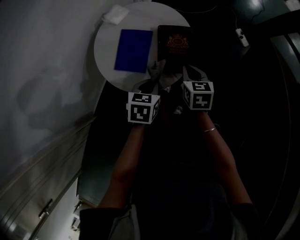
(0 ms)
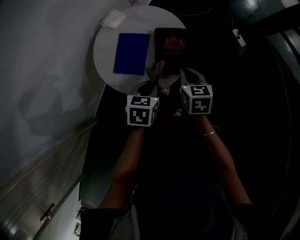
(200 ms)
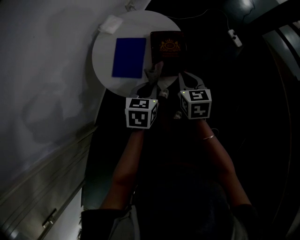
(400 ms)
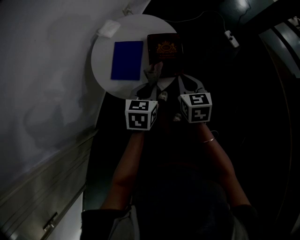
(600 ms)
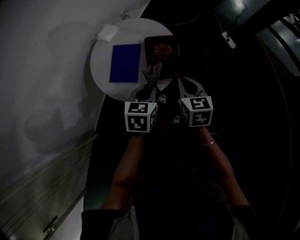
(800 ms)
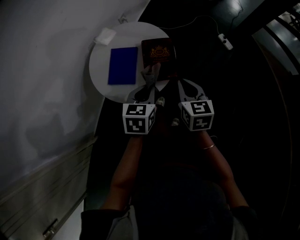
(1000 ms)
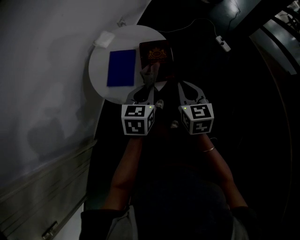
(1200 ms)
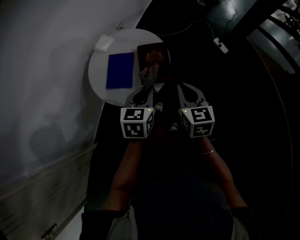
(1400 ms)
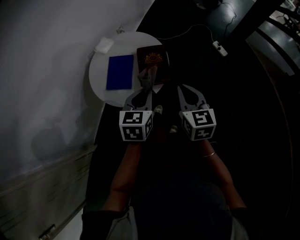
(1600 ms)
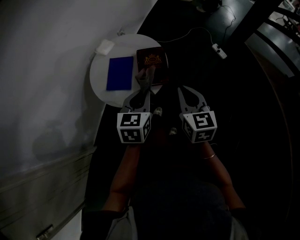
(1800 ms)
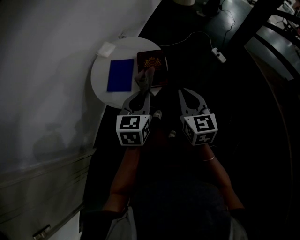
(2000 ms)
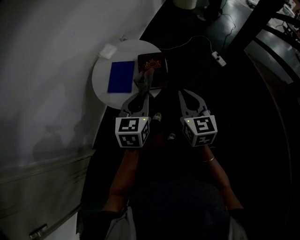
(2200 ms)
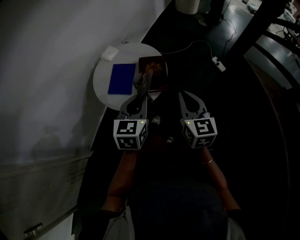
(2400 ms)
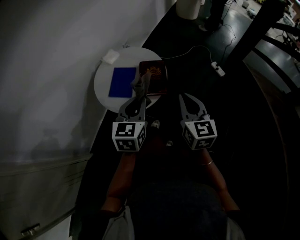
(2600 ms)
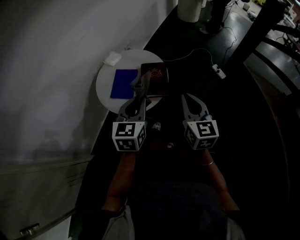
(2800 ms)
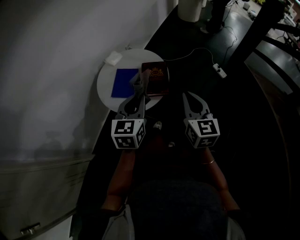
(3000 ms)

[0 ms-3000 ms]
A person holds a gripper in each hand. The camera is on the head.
0 ms to 1600 ms: The right gripper is displaced upward, backward and to the right by approximately 20 cm; the left gripper shifts some 15 cm upward and to the right, and turns by roughly 20 degrees.
1600 ms to 3000 ms: The two grippers go about 10 cm upward.

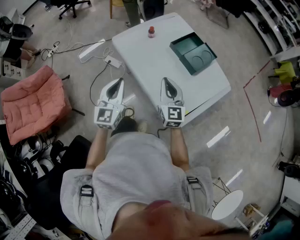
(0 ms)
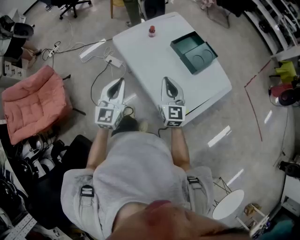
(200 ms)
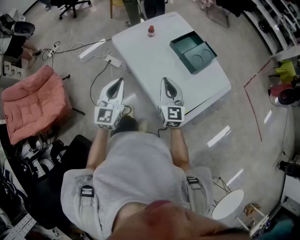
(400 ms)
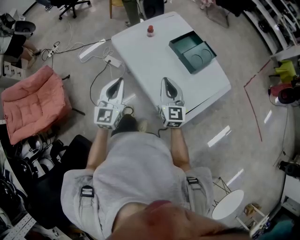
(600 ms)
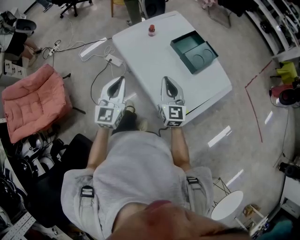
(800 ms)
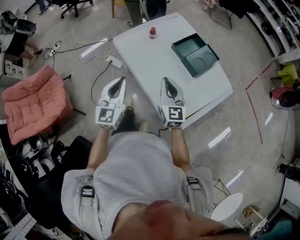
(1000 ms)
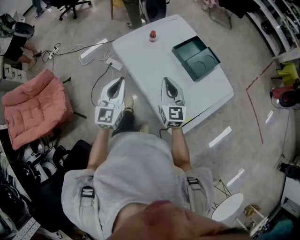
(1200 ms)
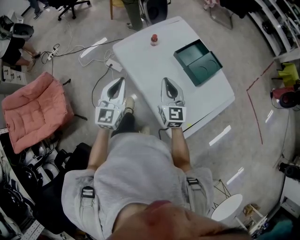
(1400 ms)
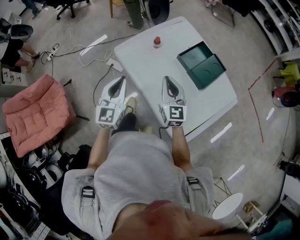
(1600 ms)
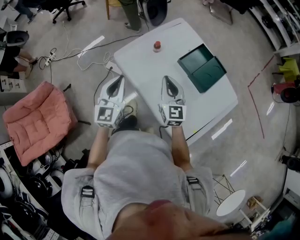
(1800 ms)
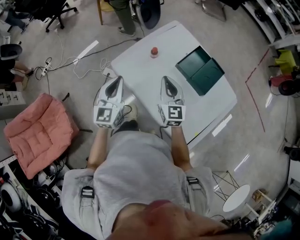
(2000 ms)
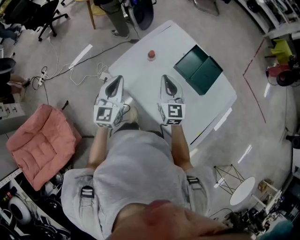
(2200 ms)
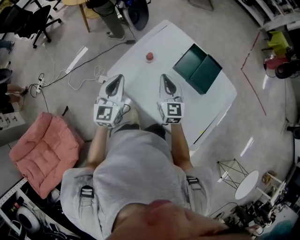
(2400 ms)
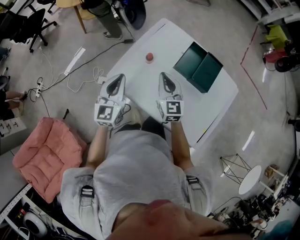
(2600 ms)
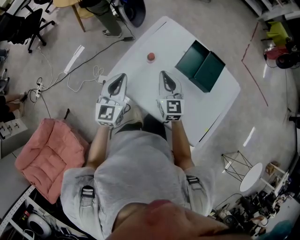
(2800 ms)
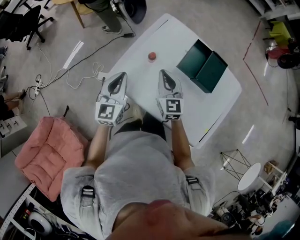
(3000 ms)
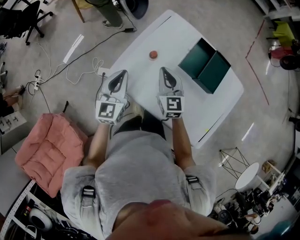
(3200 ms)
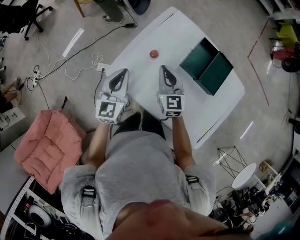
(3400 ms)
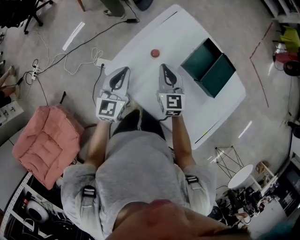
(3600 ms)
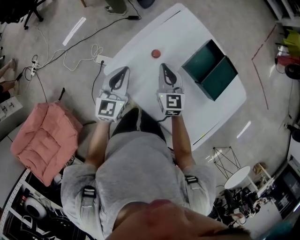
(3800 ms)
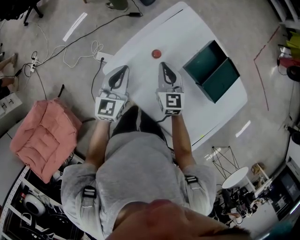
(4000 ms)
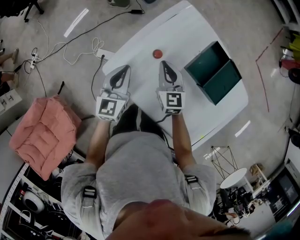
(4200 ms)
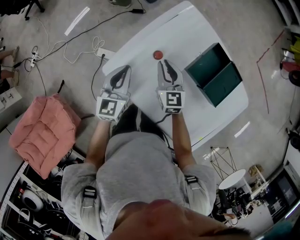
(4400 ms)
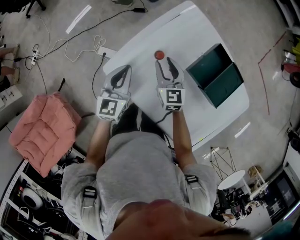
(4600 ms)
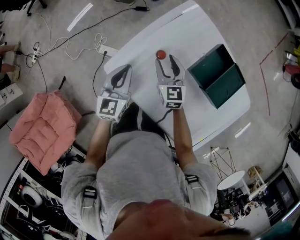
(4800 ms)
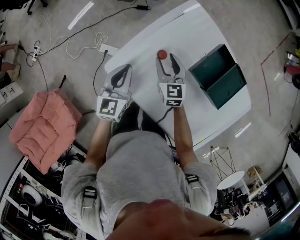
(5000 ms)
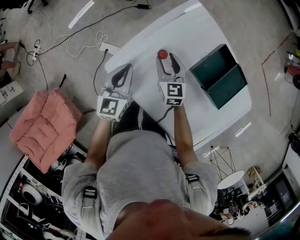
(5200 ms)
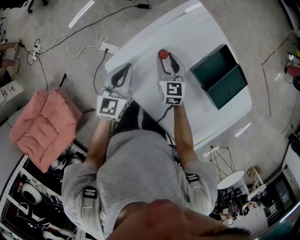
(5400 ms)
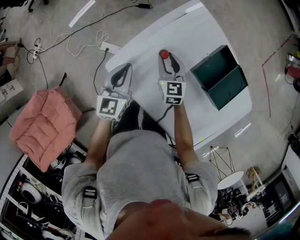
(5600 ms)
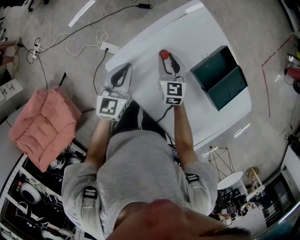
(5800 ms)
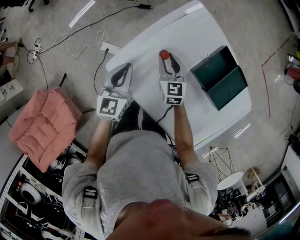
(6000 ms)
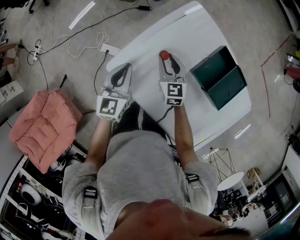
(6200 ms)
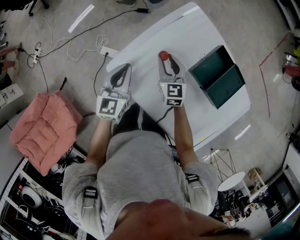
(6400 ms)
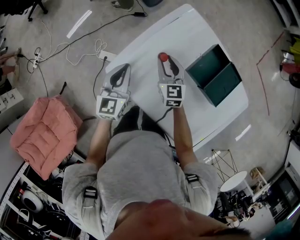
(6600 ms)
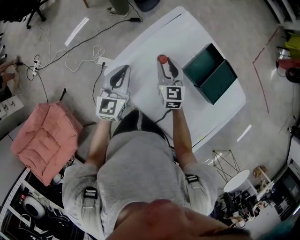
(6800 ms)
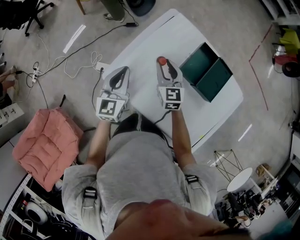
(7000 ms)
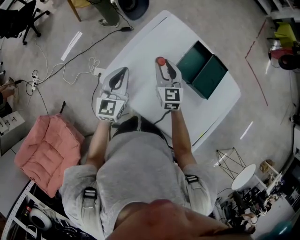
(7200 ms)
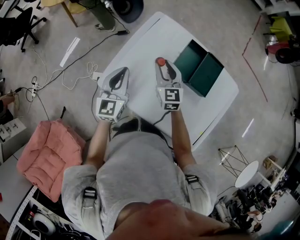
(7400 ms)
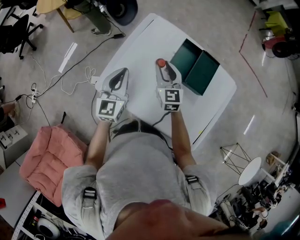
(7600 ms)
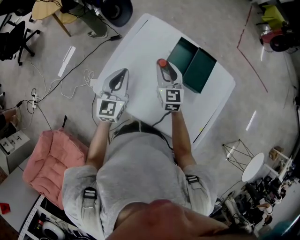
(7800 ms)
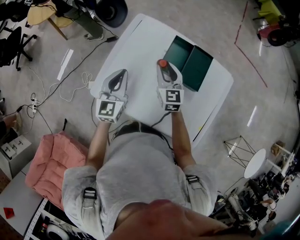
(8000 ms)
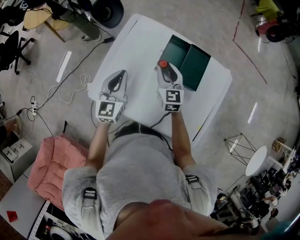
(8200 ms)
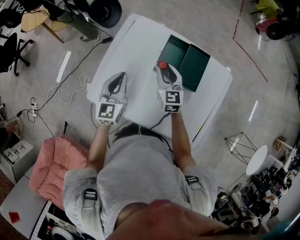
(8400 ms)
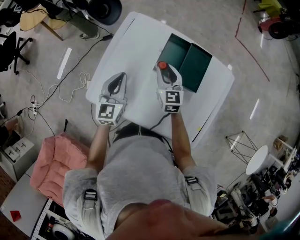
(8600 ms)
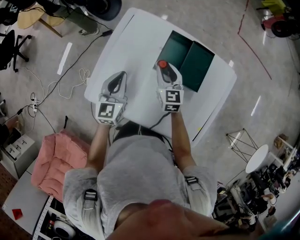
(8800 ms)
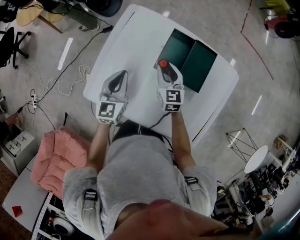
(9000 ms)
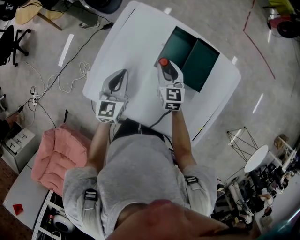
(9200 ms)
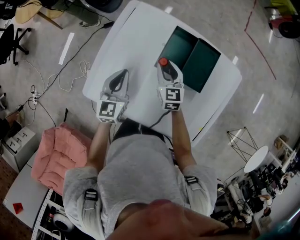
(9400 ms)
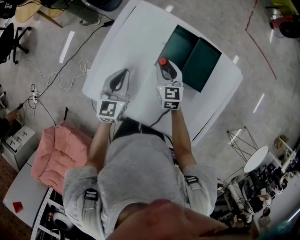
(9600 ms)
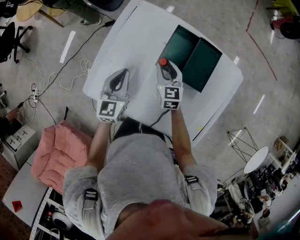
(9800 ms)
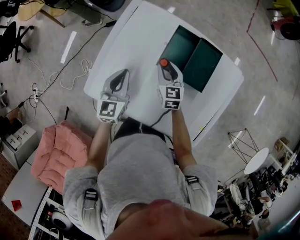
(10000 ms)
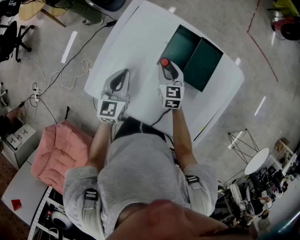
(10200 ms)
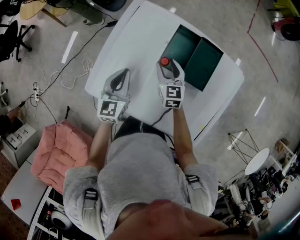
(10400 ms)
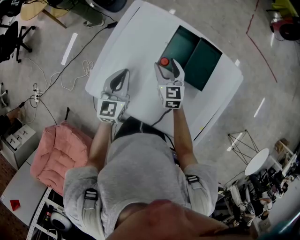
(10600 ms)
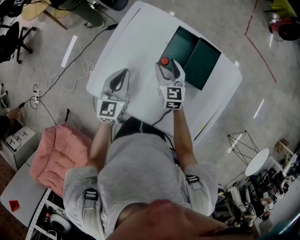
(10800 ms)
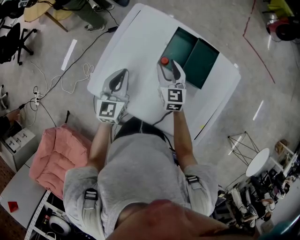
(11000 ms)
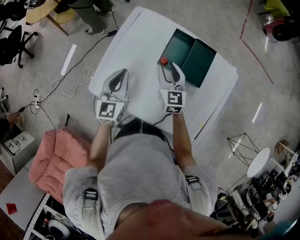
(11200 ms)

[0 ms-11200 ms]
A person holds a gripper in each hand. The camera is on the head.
0 ms to 1600 ms: Both grippers move forward, roughly 15 cm.
1600 ms to 3200 ms: Both grippers move forward, approximately 20 cm.
3200 ms to 4800 ms: The grippers both shift downward and forward by approximately 10 cm. The right gripper opens.
4800 ms to 6400 ms: The grippers move only a little.
6400 ms to 8000 ms: The two grippers go approximately 15 cm to the right and upward. The right gripper rotates about 20 degrees.
8000 ms to 9600 ms: Both grippers travel together downward, some 10 cm.
9600 ms to 11200 ms: The grippers both shift upward by roughly 10 cm. The right gripper opens, then closes again.

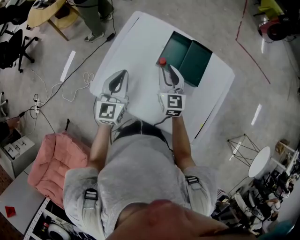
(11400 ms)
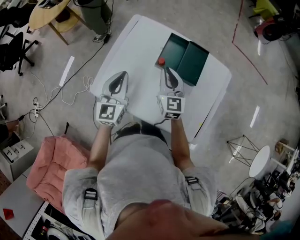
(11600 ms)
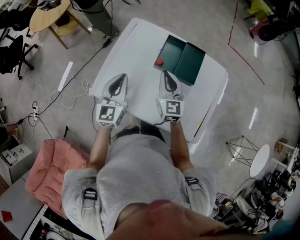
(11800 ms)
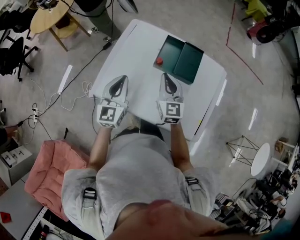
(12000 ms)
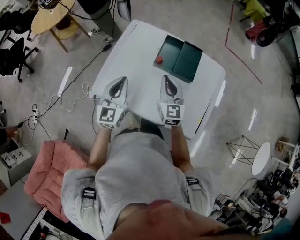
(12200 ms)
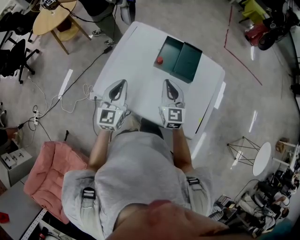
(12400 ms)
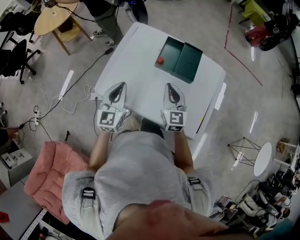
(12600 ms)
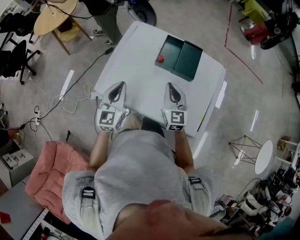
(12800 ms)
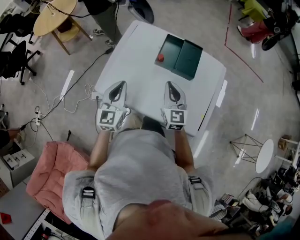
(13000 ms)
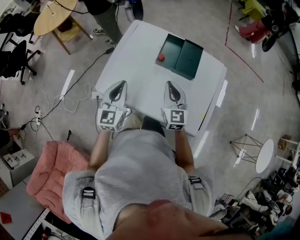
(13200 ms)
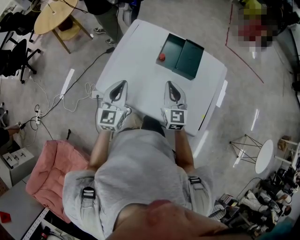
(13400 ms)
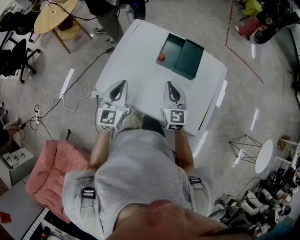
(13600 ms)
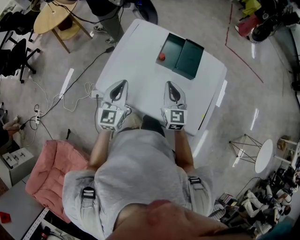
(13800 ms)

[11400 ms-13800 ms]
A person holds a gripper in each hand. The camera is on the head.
11400 ms to 12600 ms: Both grippers travel together backward, approximately 10 cm. The right gripper closes up.
12600 ms to 13800 ms: Both grippers stay put.

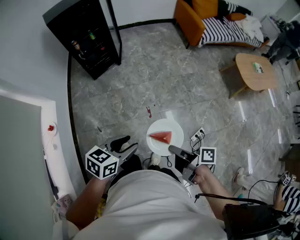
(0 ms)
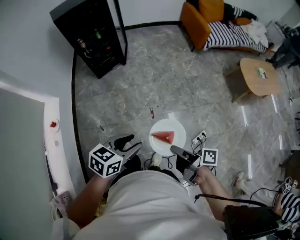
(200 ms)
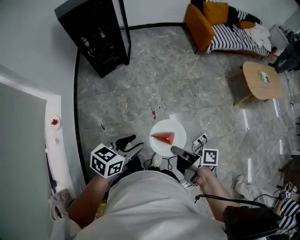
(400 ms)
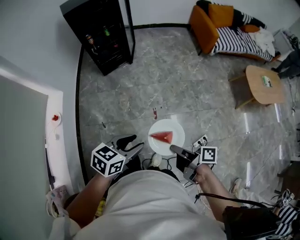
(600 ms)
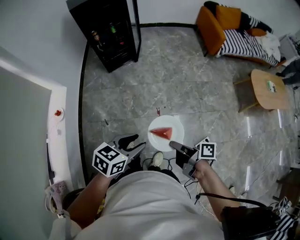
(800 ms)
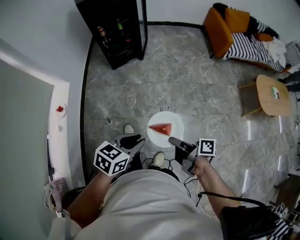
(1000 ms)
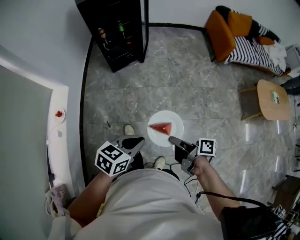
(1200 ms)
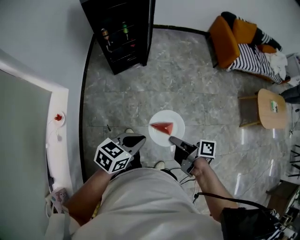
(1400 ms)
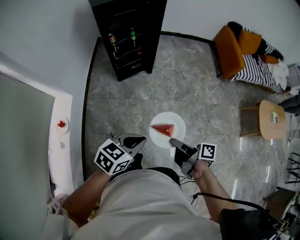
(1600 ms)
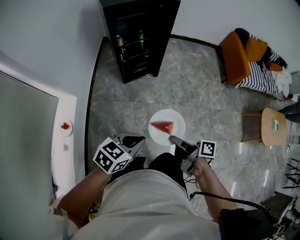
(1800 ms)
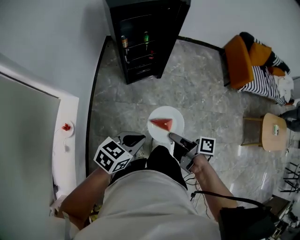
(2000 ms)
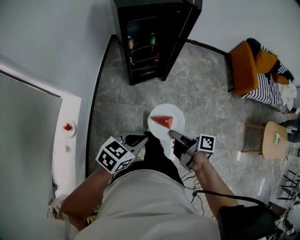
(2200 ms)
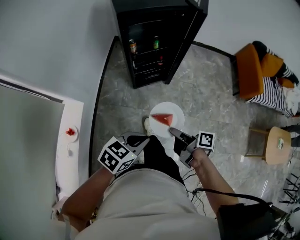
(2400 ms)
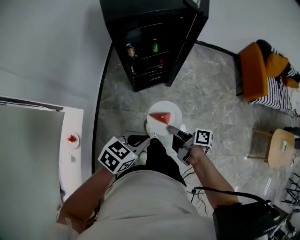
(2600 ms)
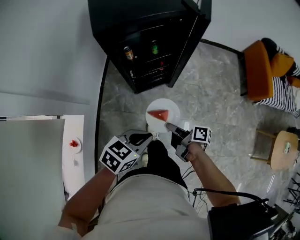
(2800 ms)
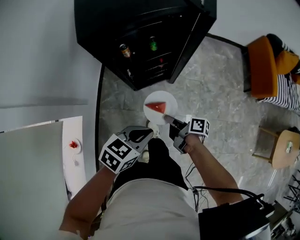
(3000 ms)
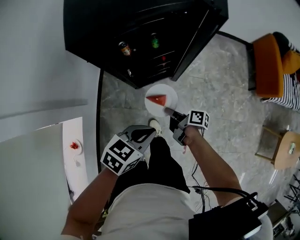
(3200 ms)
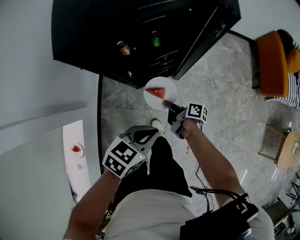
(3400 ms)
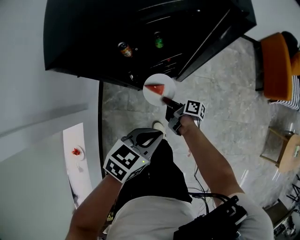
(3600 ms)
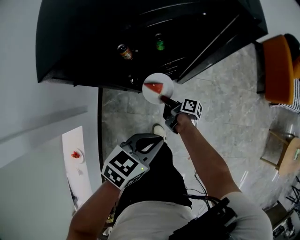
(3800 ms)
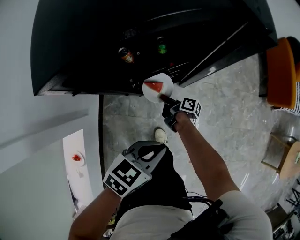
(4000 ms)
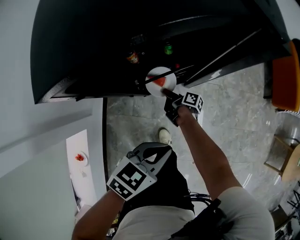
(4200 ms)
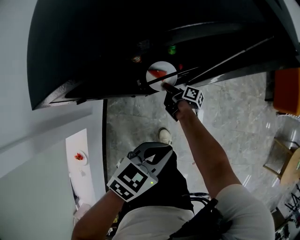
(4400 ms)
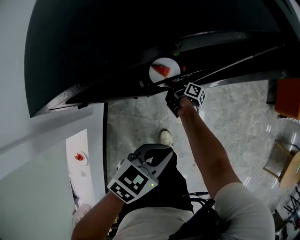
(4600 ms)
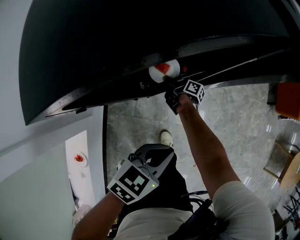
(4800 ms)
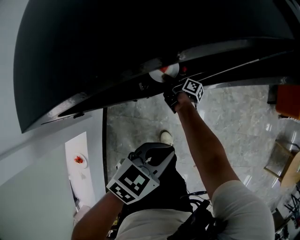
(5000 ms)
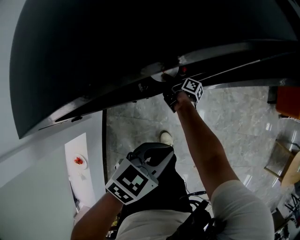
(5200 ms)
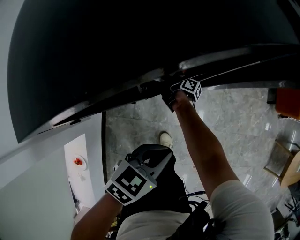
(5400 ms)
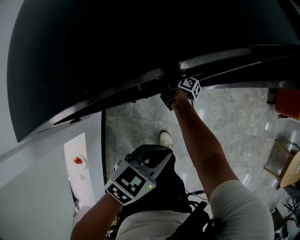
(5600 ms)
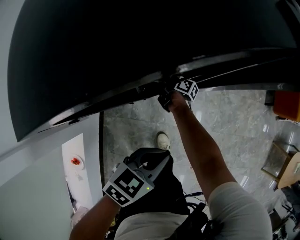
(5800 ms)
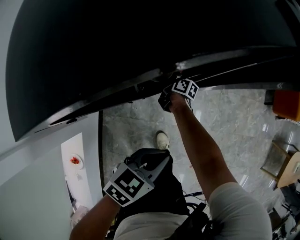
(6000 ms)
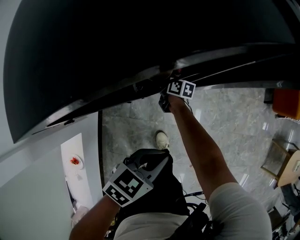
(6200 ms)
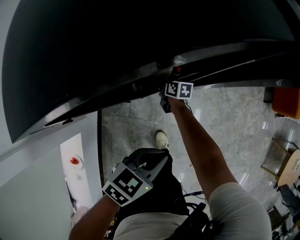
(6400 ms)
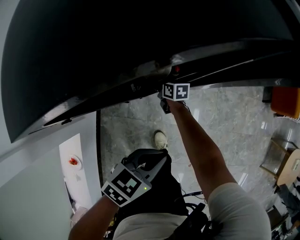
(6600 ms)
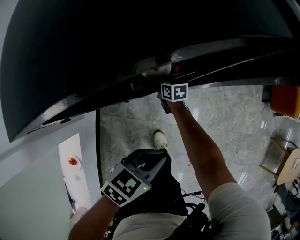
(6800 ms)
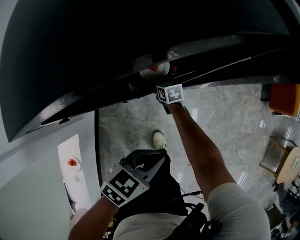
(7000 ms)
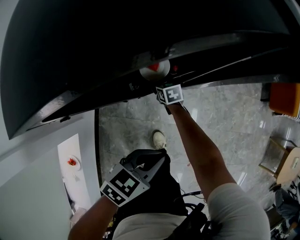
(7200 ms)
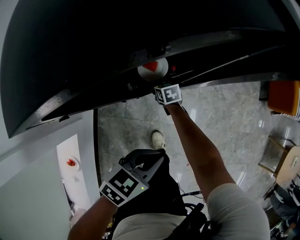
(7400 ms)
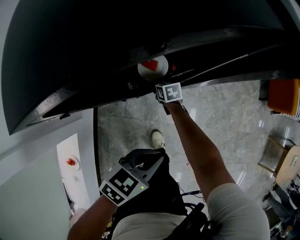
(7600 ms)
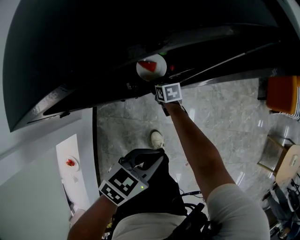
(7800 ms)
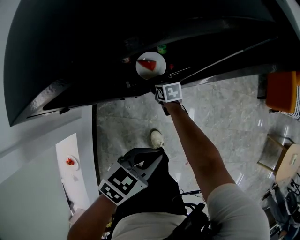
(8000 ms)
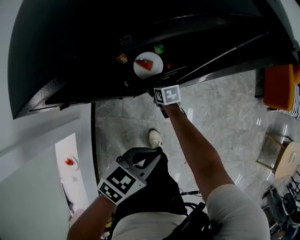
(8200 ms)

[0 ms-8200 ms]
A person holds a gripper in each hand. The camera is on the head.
0 ms to 1600 ms: The left gripper ends up some 25 cm from where it was, and closes.
1600 ms to 3200 ms: The left gripper moves approximately 40 cm.
3200 ms to 5000 ms: The left gripper ends up some 15 cm from where it was.
